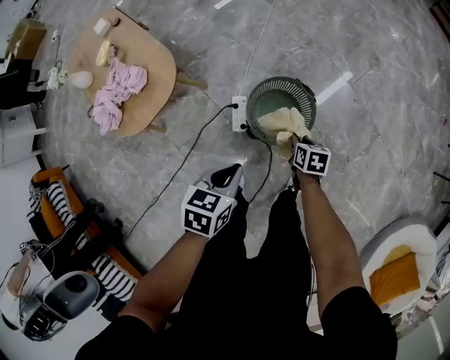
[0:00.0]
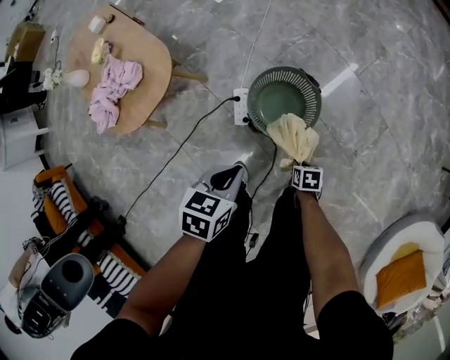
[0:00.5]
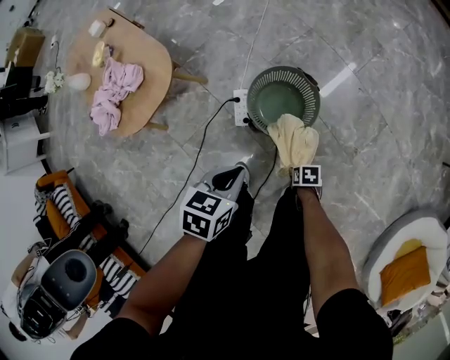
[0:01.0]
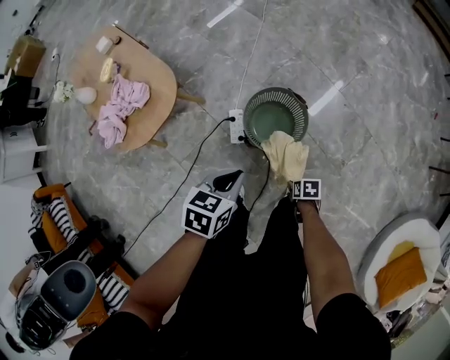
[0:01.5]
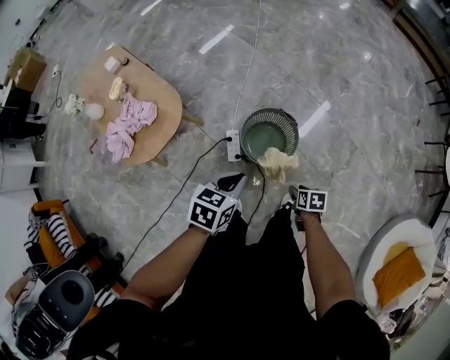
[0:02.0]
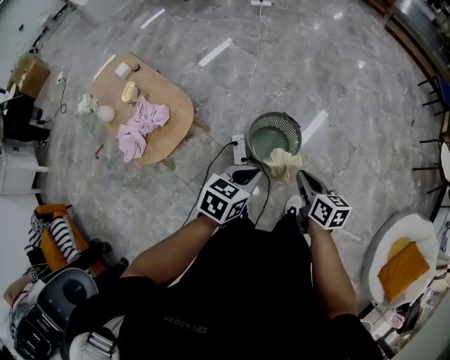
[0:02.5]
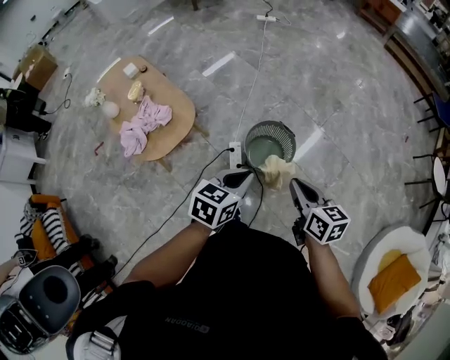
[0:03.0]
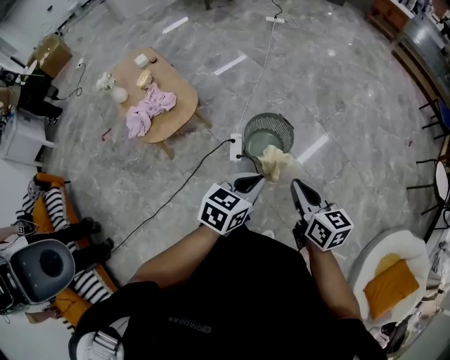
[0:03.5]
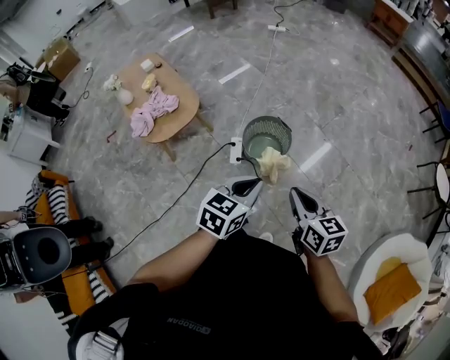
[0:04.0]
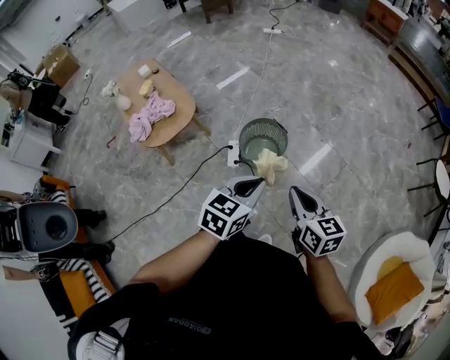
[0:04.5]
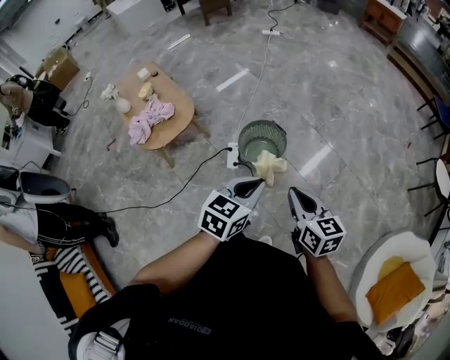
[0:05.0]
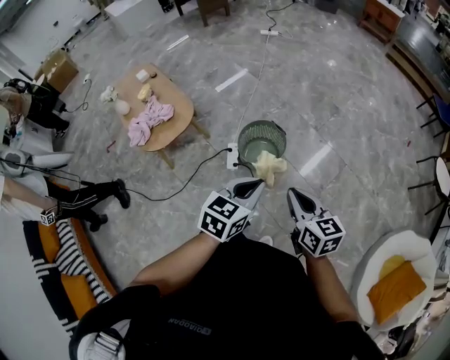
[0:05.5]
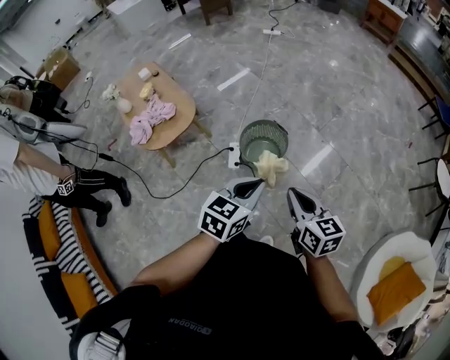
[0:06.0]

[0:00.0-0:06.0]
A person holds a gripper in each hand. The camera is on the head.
0:00.0 to 0:02.0: The left gripper shifts about 10 cm upward. Meanwhile the right gripper changes place by roughly 15 cm, and opens.
0:02.0 to 0:04.0: The right gripper heads upward and backward, covering roughly 40 cm, tips its fingers upward by roughly 40 degrees, and closes; the left gripper is displaced backward, upward and to the right by about 25 cm.
0:04.0 to 0:06.0: The grippers move only a little.

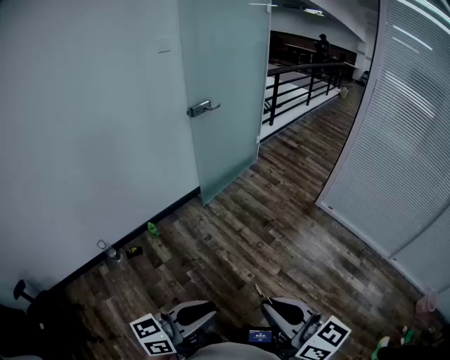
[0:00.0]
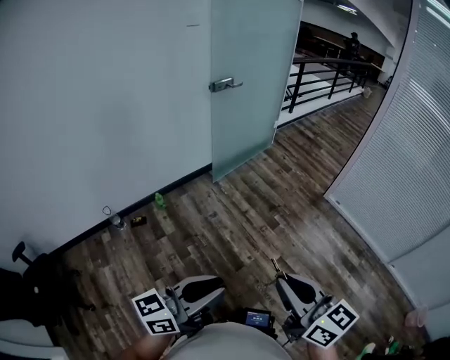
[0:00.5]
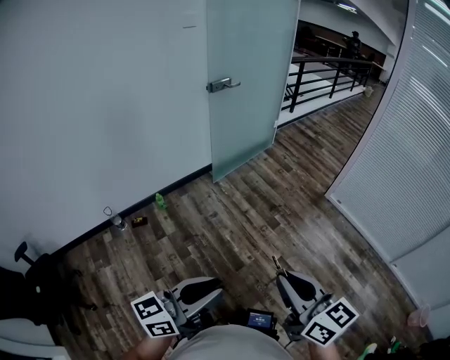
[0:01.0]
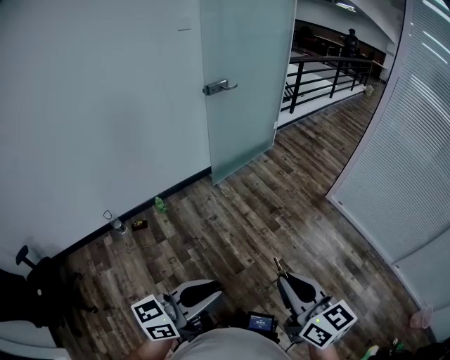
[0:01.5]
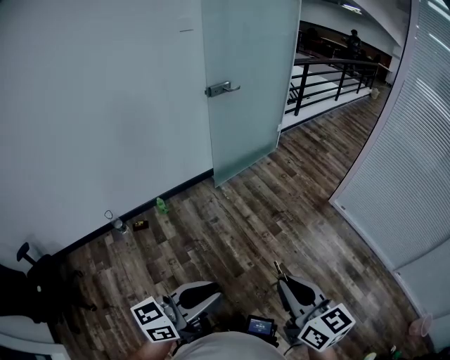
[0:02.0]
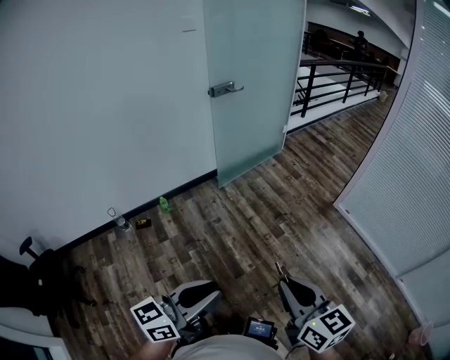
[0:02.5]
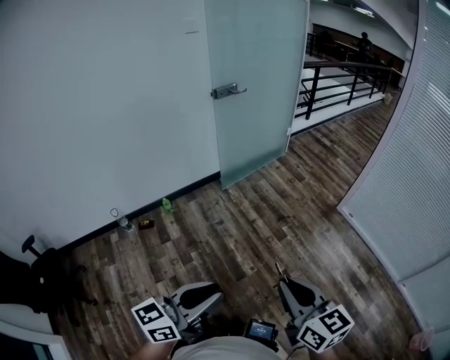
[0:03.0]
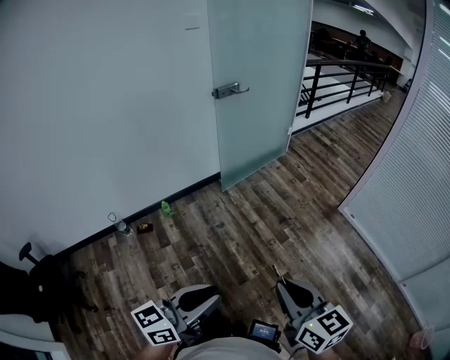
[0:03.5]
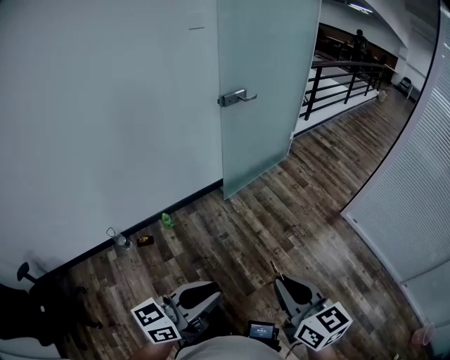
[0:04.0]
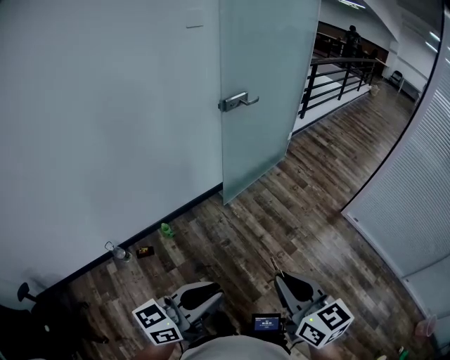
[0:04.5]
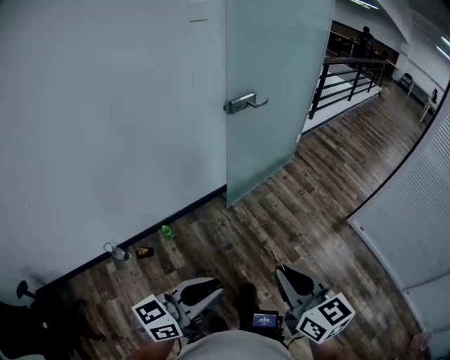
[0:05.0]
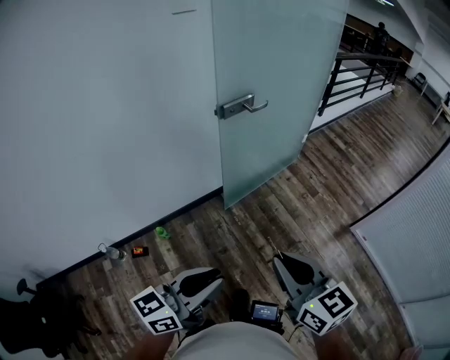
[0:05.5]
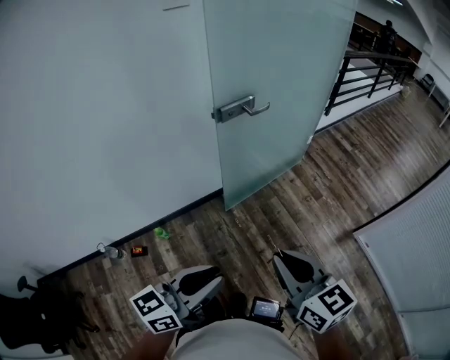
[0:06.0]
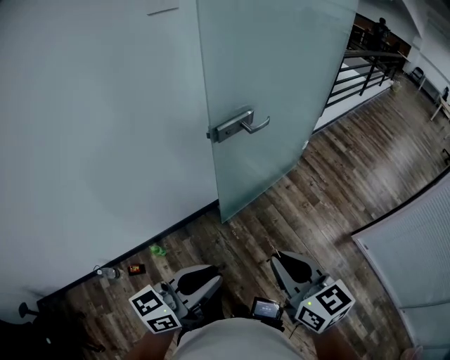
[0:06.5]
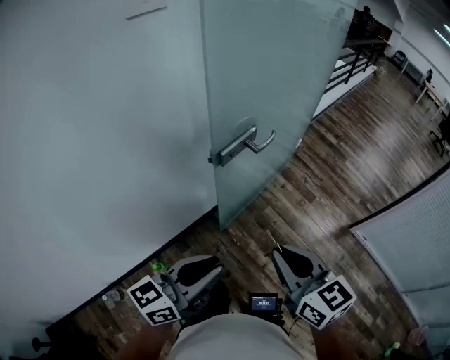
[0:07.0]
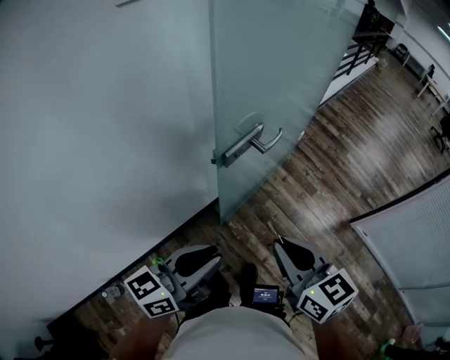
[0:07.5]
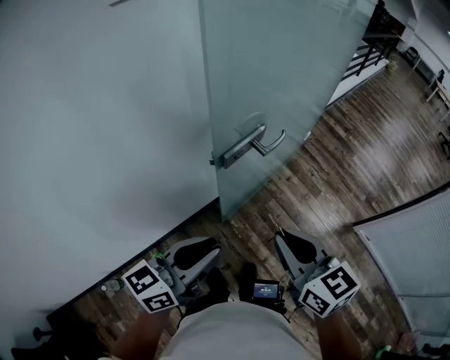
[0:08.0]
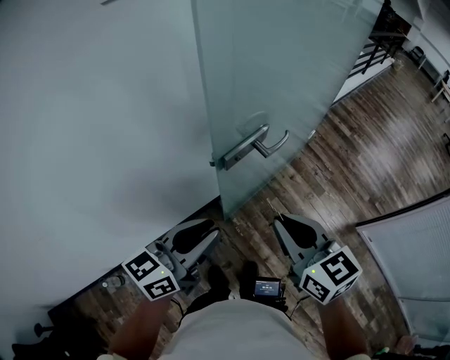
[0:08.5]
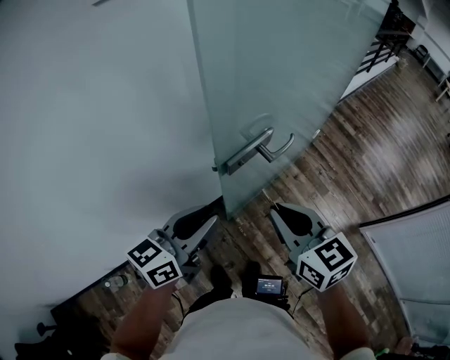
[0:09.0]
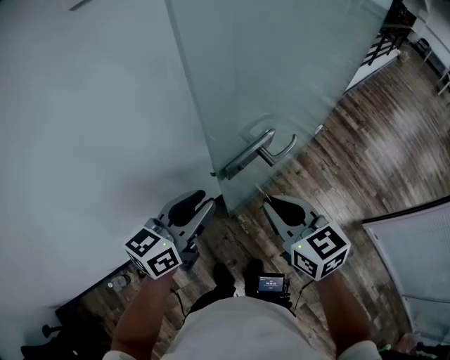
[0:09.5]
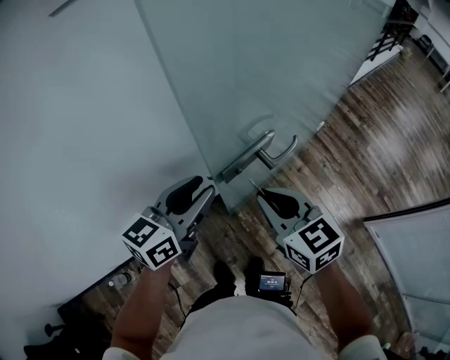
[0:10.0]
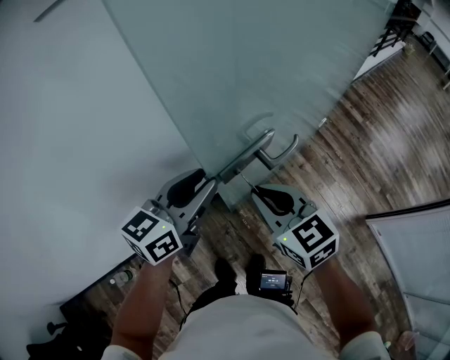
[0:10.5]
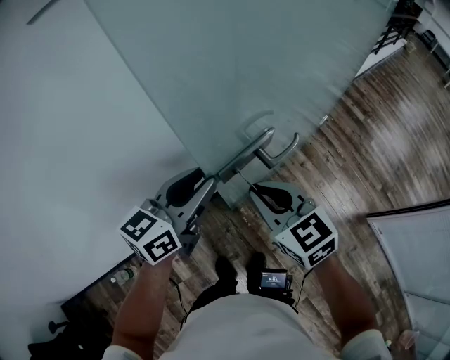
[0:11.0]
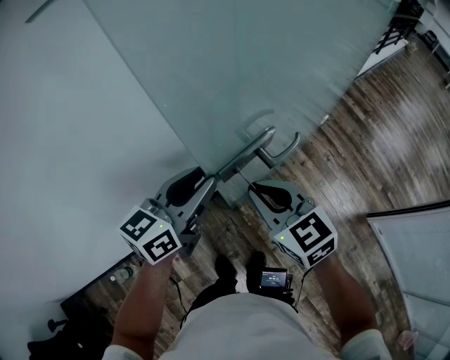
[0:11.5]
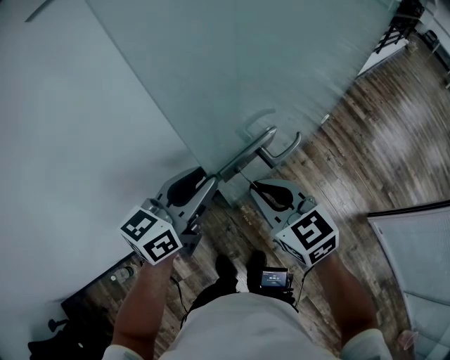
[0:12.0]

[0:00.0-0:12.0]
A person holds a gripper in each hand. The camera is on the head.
0:00.0 to 0:02.0: The left gripper goes roughly 5 cm to the right, while the right gripper is displaced to the right and forward by approximately 10 cm.
0:02.0 to 0:04.0: The grippers both shift forward and to the left by approximately 20 cm.
0:04.0 to 0:06.0: Both grippers move forward, some 35 cm.
0:06.0 to 0:08.0: The two grippers go some 30 cm forward and to the left.
0:08.0 to 0:10.0: The two grippers go some 15 cm forward.
0:10.0 to 0:12.0: The grippers stay close to where they were, moving slightly.

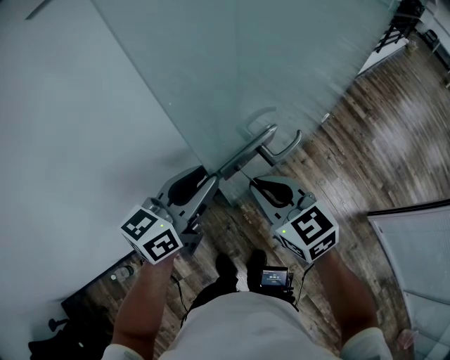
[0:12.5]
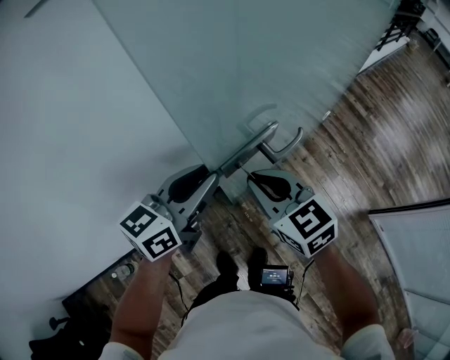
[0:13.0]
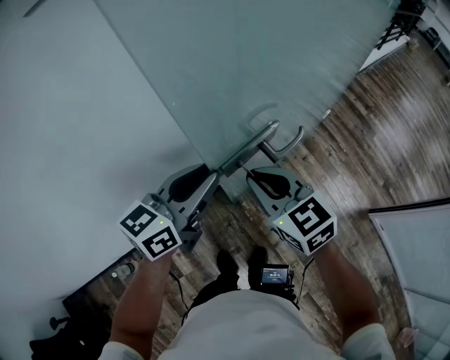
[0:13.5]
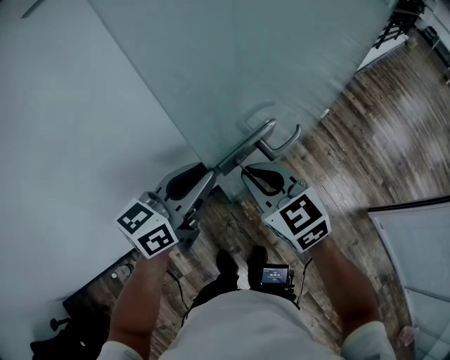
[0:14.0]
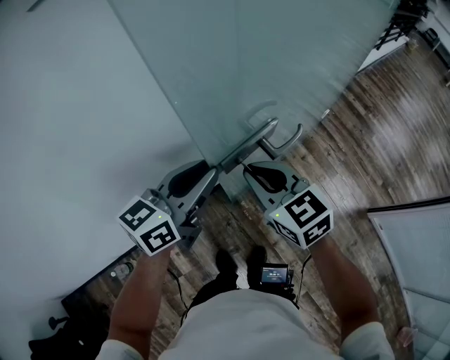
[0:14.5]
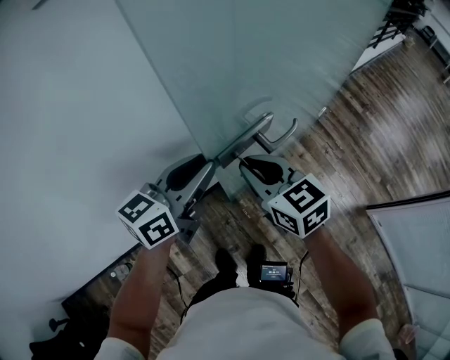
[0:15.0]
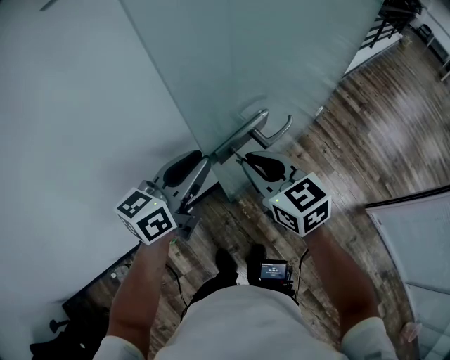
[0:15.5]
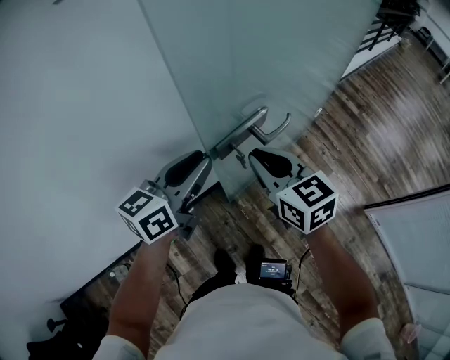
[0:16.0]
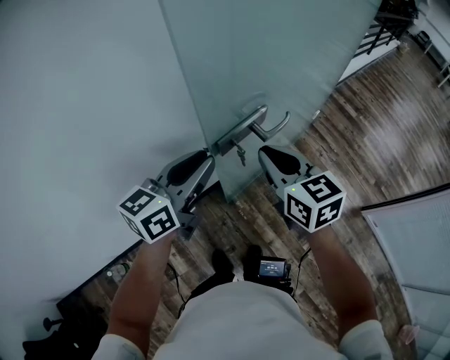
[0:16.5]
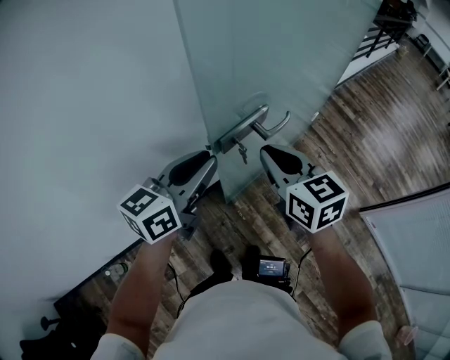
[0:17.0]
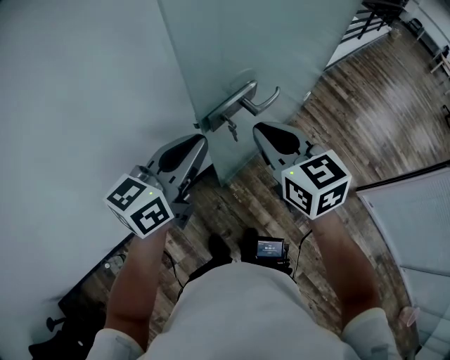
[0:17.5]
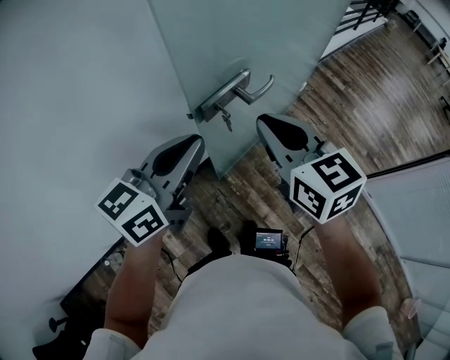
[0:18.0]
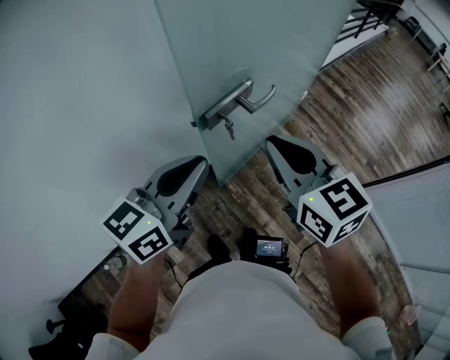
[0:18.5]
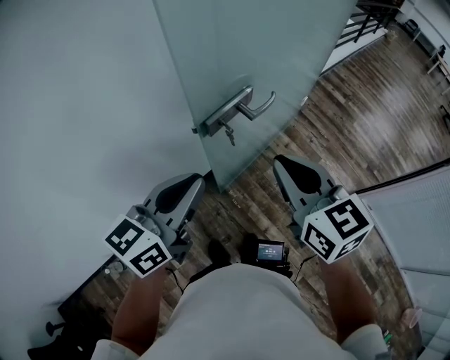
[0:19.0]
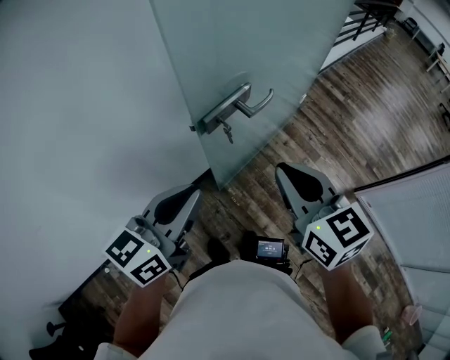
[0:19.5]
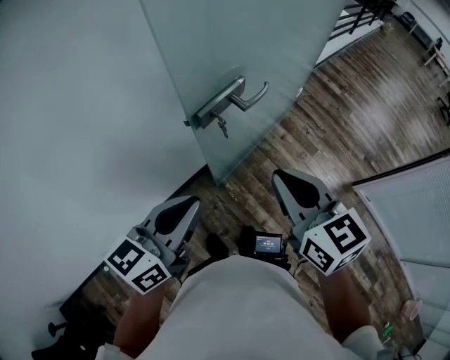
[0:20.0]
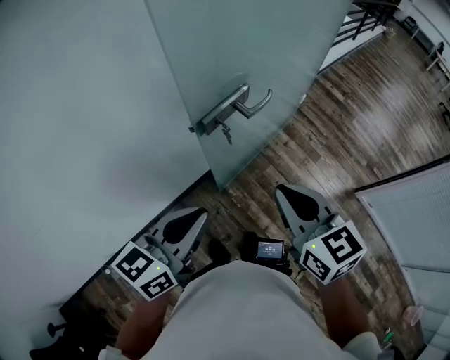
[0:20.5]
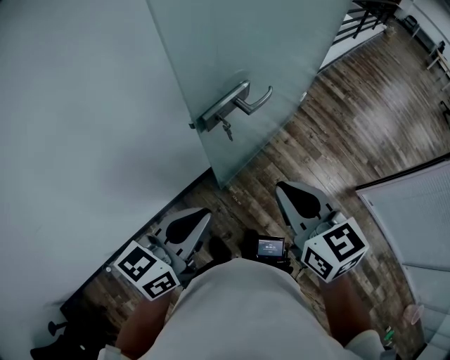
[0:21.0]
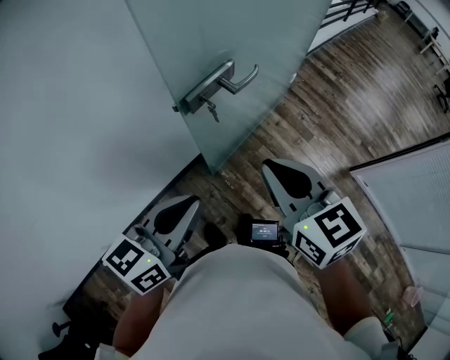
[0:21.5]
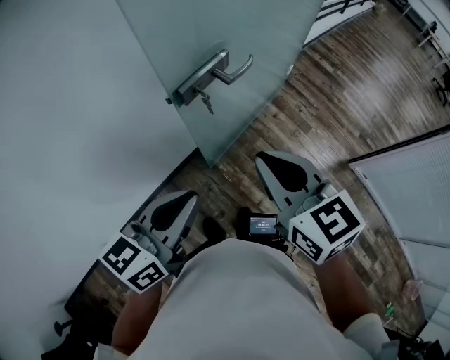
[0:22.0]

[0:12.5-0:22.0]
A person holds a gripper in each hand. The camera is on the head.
0:12.5 to 0:14.5: The grippers move only a little.
0:14.5 to 0:16.5: The right gripper moves roughly 5 cm.
0:16.5 to 0:18.0: The left gripper goes approximately 5 cm backward, while the right gripper shifts about 5 cm upward.
0:18.0 to 0:20.0: The two grippers go about 10 cm backward.
0:20.0 to 0:22.0: The grippers move only a little.
